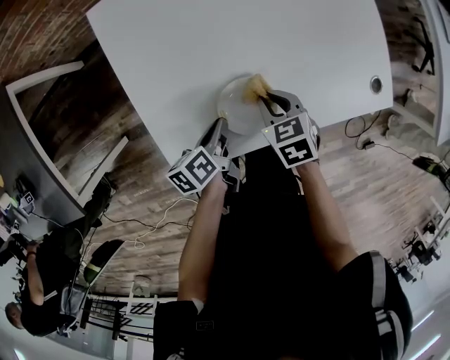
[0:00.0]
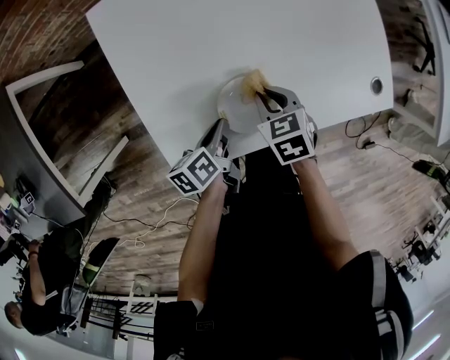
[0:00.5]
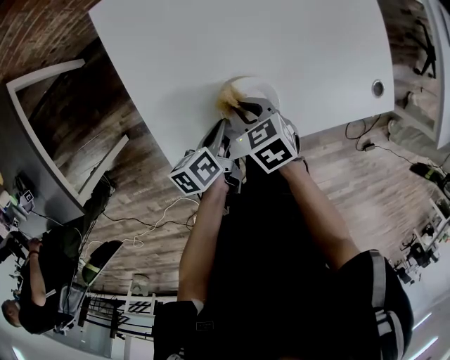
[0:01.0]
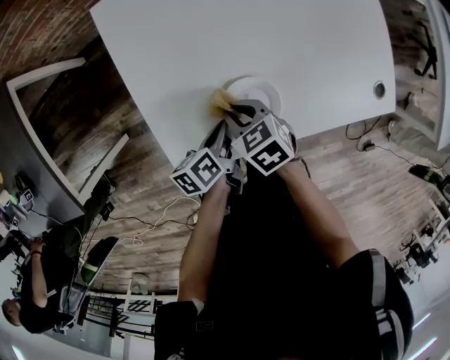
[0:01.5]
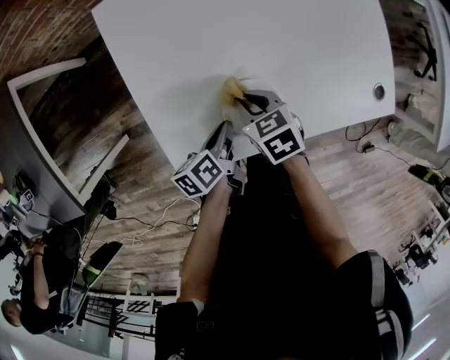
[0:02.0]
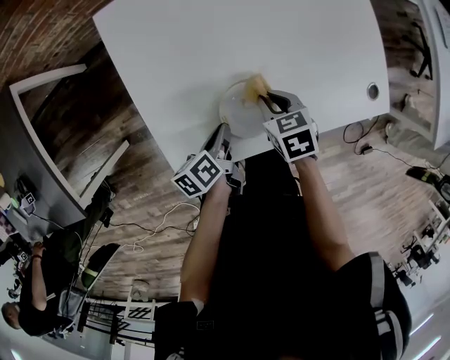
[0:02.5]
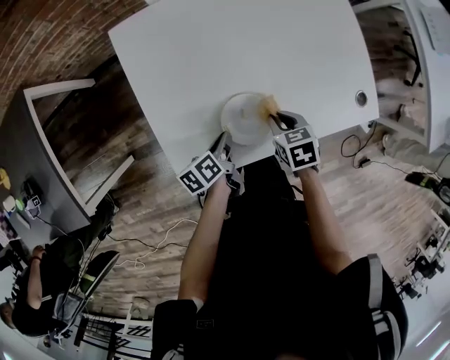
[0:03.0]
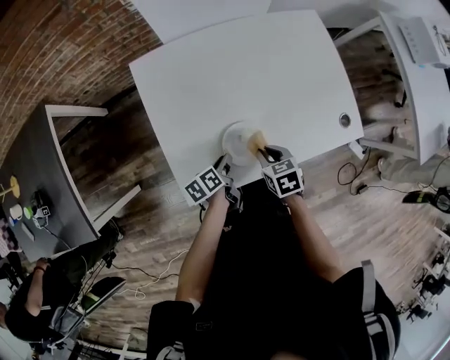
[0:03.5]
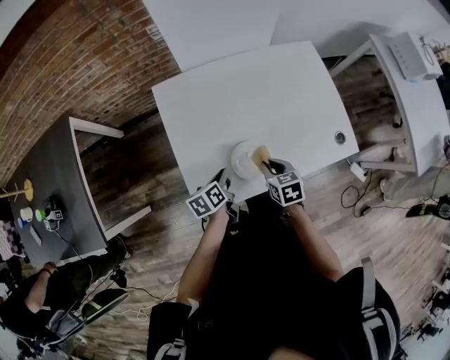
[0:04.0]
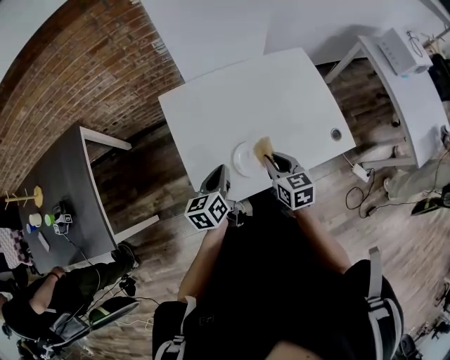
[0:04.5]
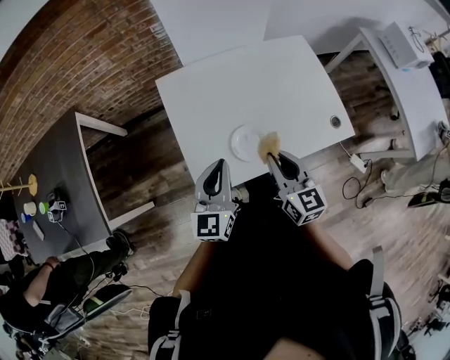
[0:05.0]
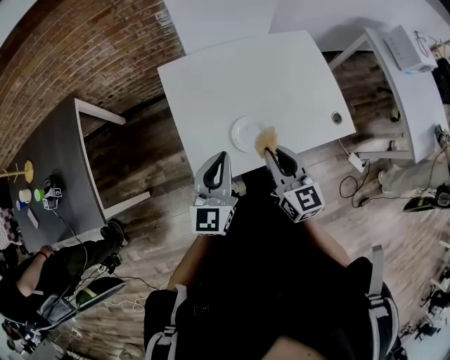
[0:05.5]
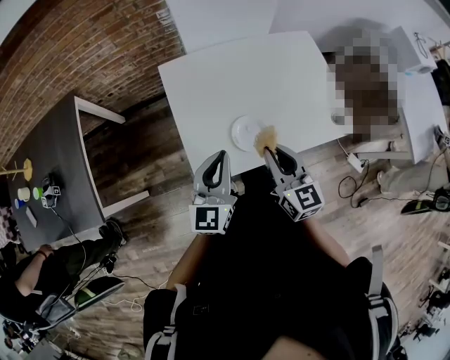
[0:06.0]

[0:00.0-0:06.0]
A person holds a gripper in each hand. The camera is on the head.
0:00.0 to 0:02.0: The right gripper moves to the left, approximately 5 cm.
0:02.0 to 0:04.0: The right gripper heads upward and to the right, covering approximately 10 cm; the left gripper moves upward, roughly 5 cm.
0:04.0 to 0:06.0: Both grippers move upward, approximately 20 cm. The left gripper tips its fingers upward by roughly 40 degrees. Meanwhile the right gripper tips its fingers upward by approximately 40 degrees.

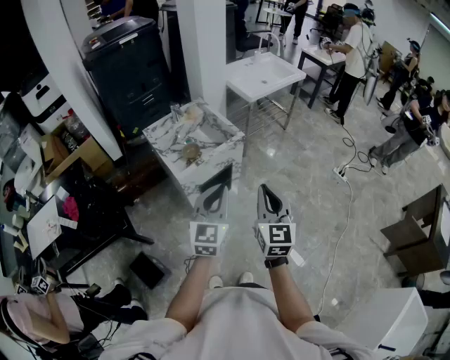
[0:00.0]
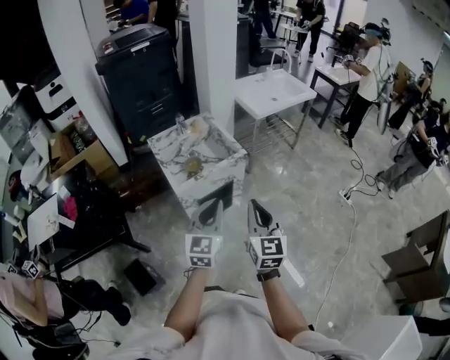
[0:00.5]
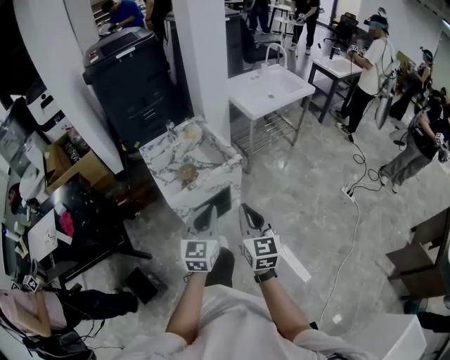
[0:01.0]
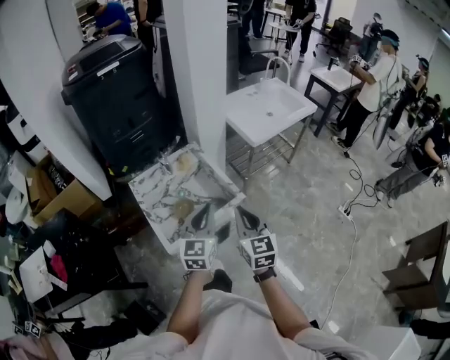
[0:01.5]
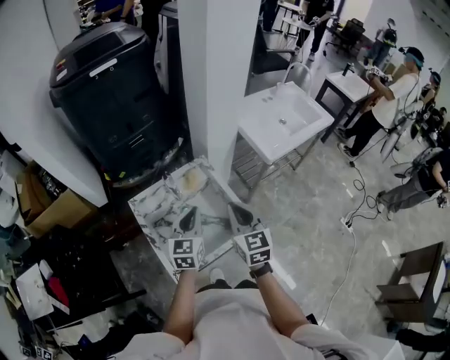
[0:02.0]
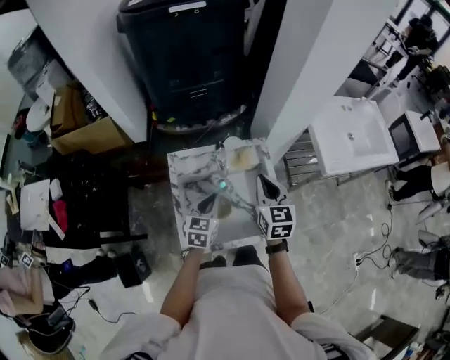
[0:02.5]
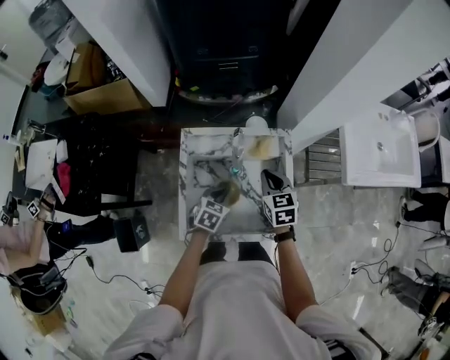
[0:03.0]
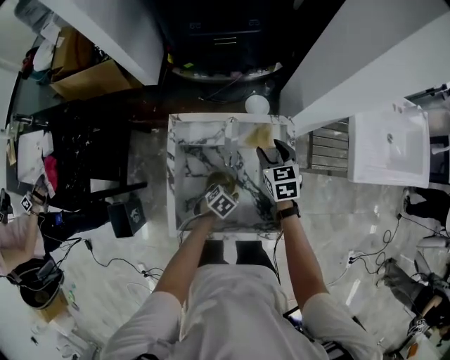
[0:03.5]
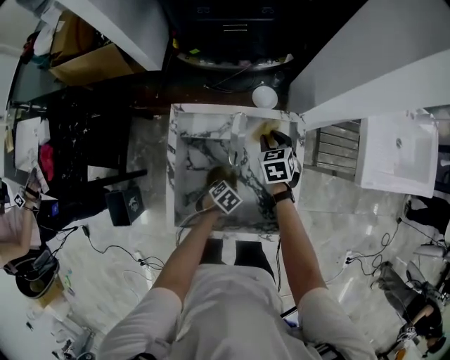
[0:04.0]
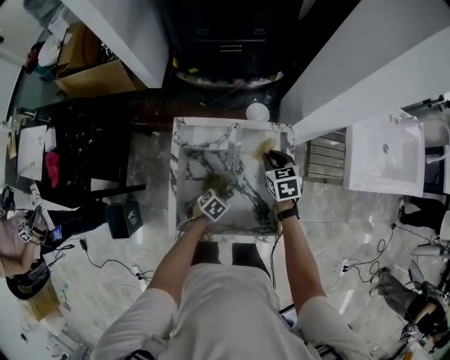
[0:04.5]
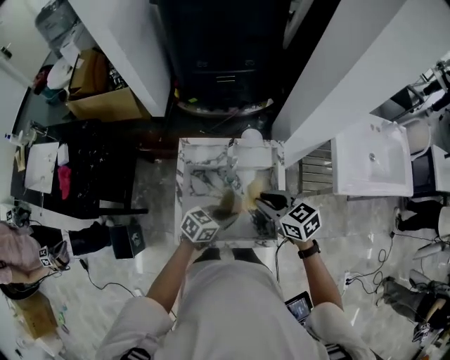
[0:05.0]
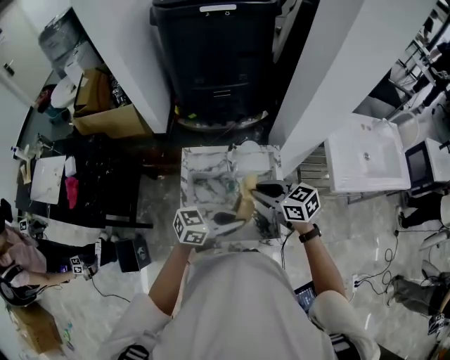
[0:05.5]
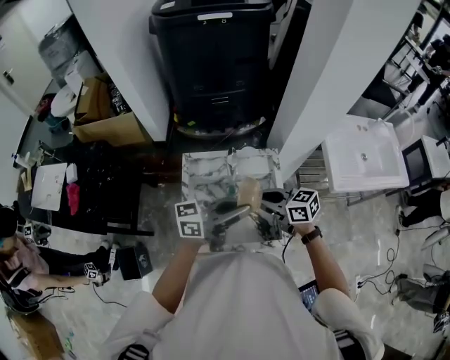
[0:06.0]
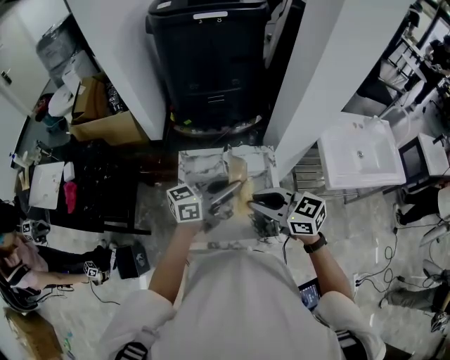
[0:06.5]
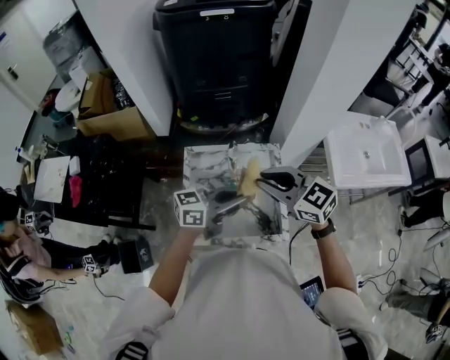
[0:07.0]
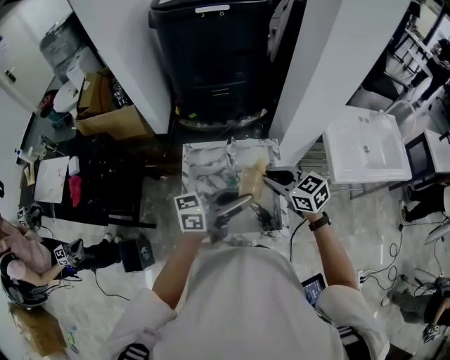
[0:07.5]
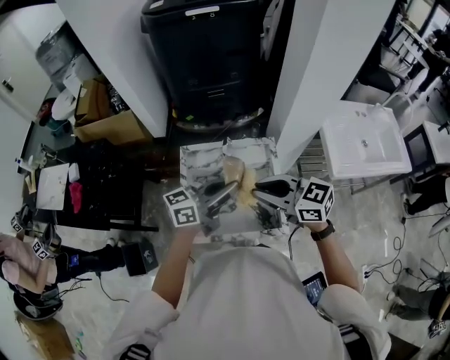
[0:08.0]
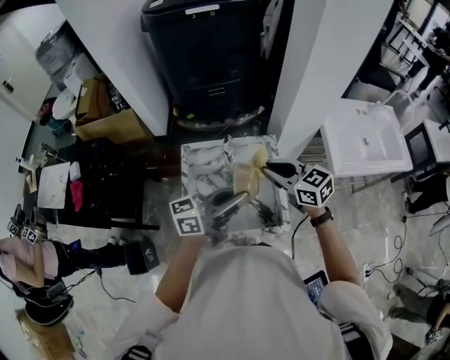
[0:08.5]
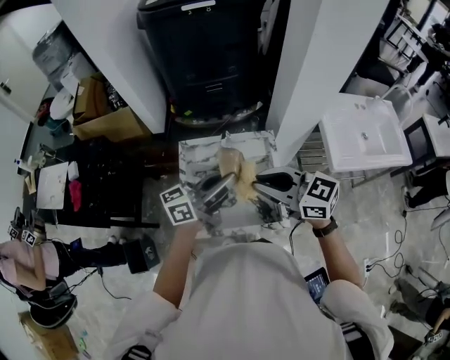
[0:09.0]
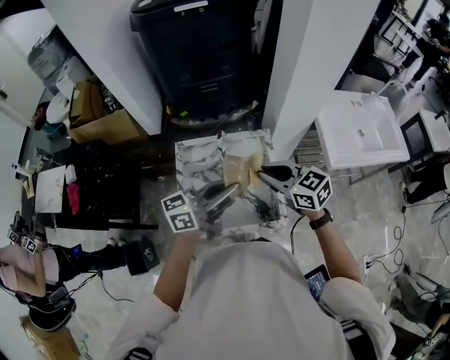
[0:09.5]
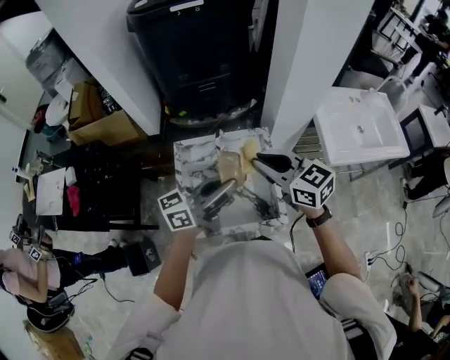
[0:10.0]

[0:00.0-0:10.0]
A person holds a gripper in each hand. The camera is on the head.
0:00.0 to 0:02.0: The two grippers travel together, forward, roughly 50 cm. The right gripper swivels roughly 20 degrees.
0:02.0 to 0:04.0: The left gripper shifts approximately 40 cm downward, angles its fingers downward, by roughly 50 degrees, and opens its fingers, while the right gripper travels downward, forward and to the left by approximately 40 cm, angles its fingers downward, by some 30 degrees, and opens.
0:04.0 to 0:06.0: The right gripper travels upward by roughly 20 cm, and tilts its fingers about 30 degrees upward, while the left gripper shifts roughly 50 cm upward, and points its fingers roughly 80 degrees further upward.
0:06.0 to 0:08.0: The right gripper moves up and down over about 15 cm, changing direction 2 times.
0:08.0 to 0:10.0: The right gripper moves up and down over approximately 5 cm, changing direction 3 times.

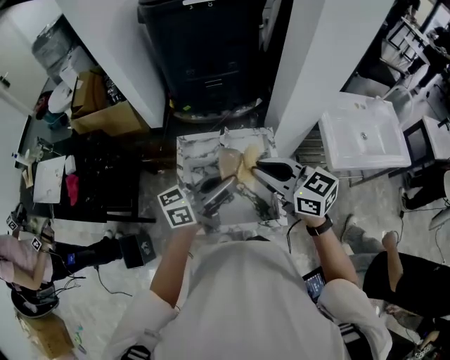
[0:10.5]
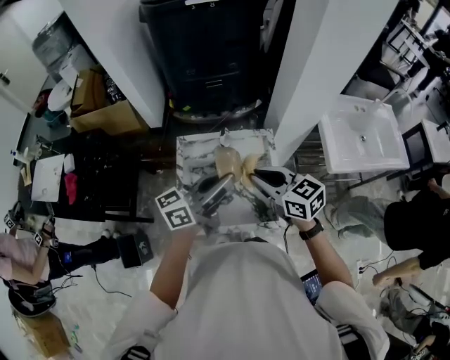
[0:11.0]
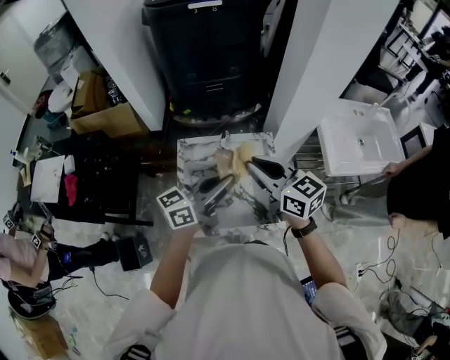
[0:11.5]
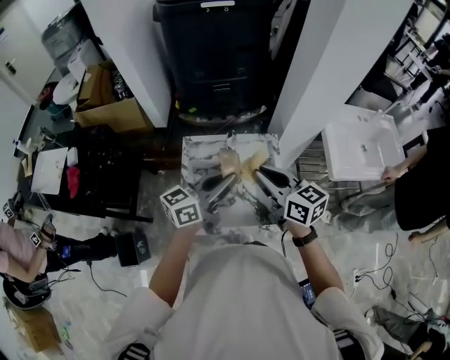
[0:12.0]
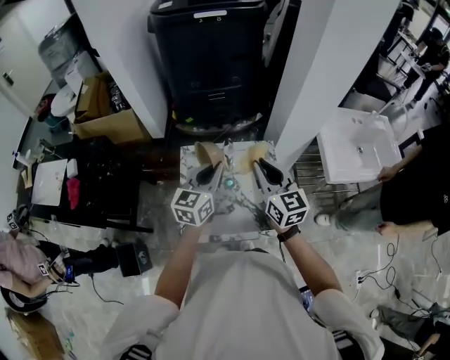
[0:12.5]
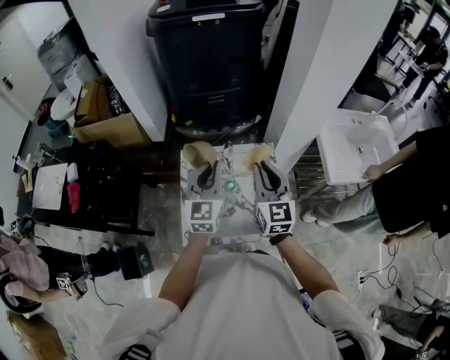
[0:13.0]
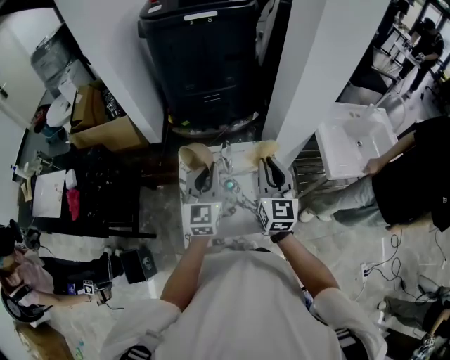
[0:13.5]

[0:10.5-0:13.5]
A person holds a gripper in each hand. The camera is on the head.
0:12.0 to 0:13.5: The grippers both shift forward by approximately 5 cm. The right gripper swivels approximately 40 degrees, while the left gripper turns by roughly 50 degrees.

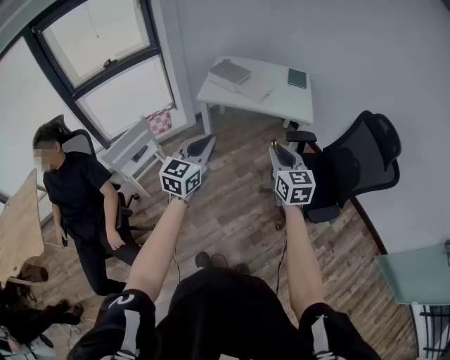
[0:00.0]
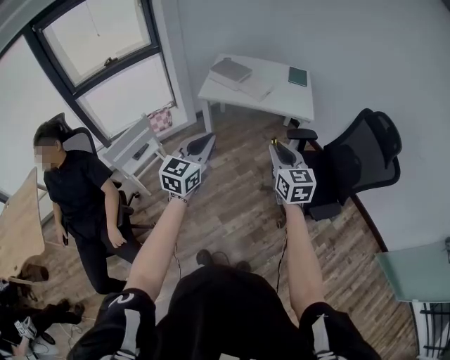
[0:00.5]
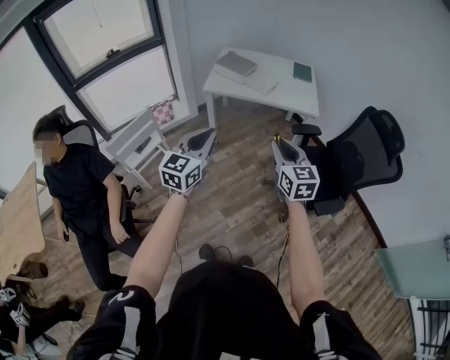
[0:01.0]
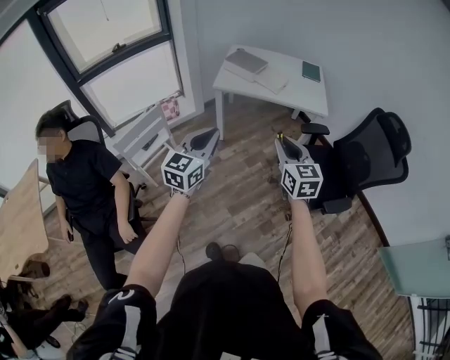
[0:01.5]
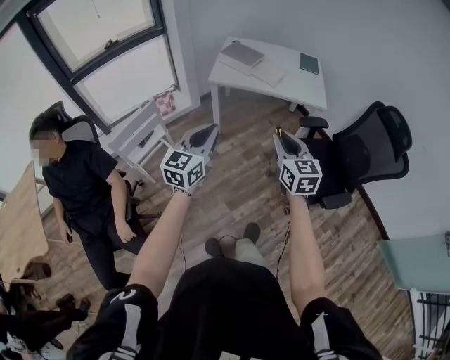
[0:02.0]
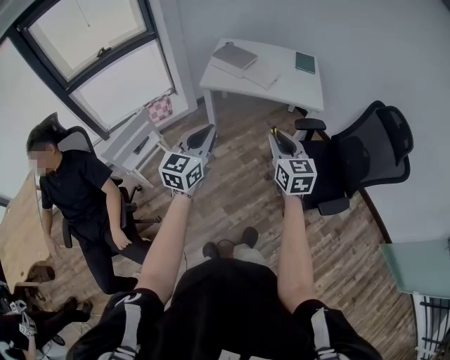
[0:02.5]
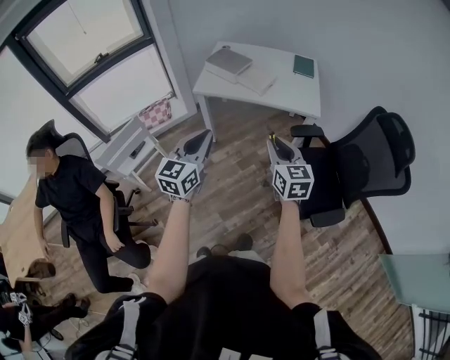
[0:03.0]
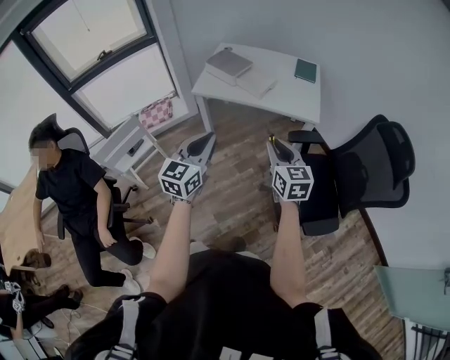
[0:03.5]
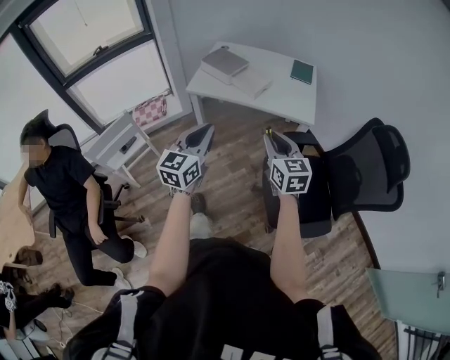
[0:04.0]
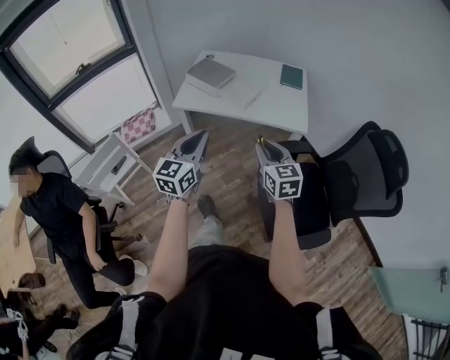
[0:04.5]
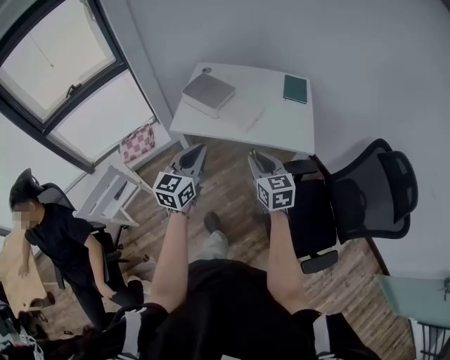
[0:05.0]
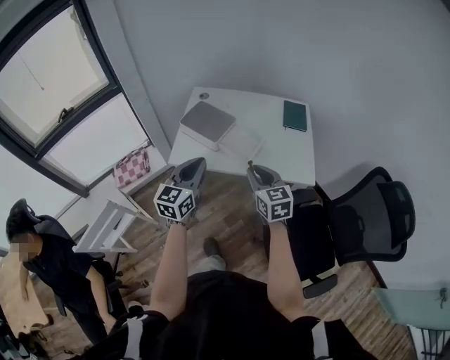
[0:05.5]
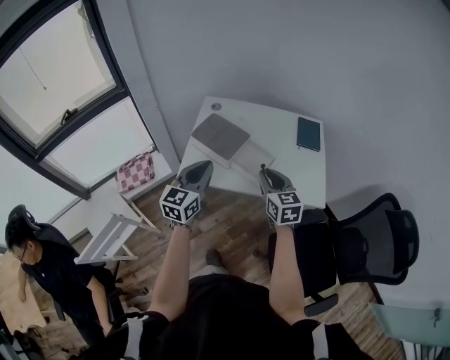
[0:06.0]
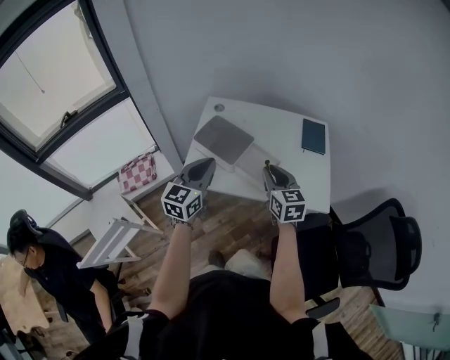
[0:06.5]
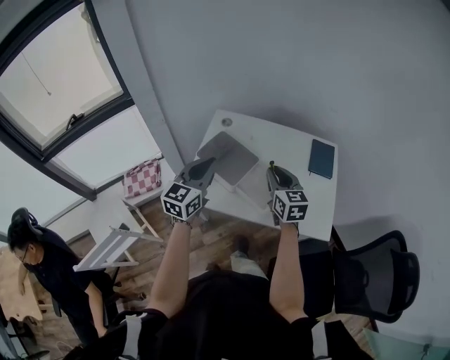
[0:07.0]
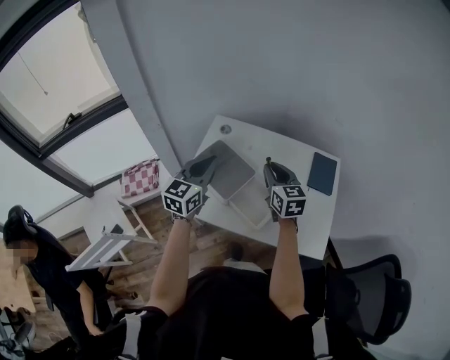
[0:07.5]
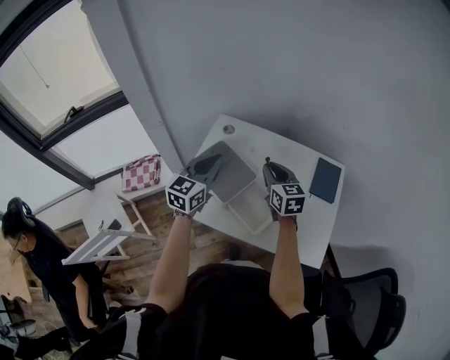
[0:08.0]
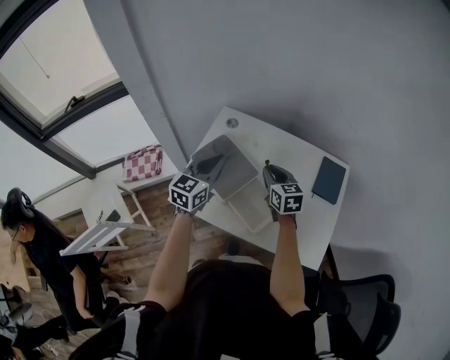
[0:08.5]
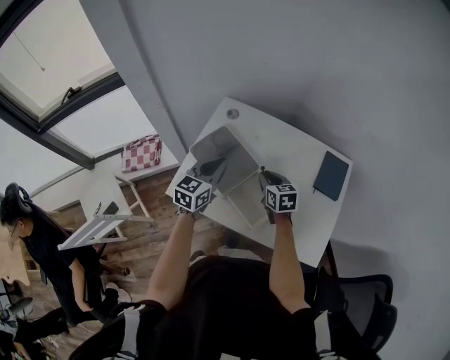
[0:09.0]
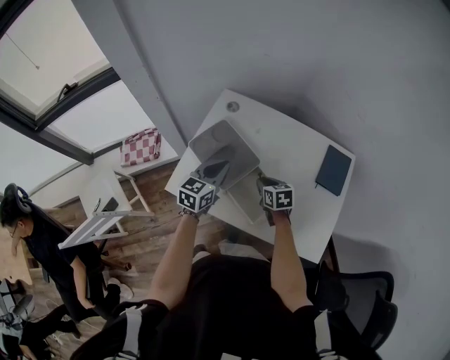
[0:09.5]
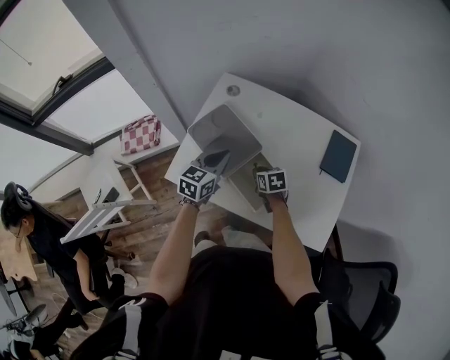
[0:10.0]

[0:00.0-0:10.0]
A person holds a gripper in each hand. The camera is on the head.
0:00.0 to 0:02.0: The grippers both shift to the left by some 10 cm.
0:02.0 to 0:04.0: The grippers both shift to the right and forward by approximately 20 cm.
0:04.0 to 0:06.0: The two grippers travel together, forward, some 40 cm.
0:06.0 to 0:08.0: Both grippers travel together forward, some 25 cm.
0:08.0 to 0:10.0: The right gripper is displaced downward by approximately 25 cm, and points its fingers some 30 degrees further downward, while the left gripper heads downward, covering roughly 15 cm.
